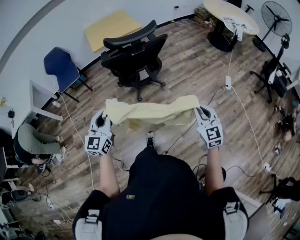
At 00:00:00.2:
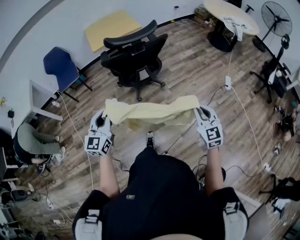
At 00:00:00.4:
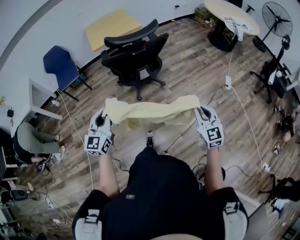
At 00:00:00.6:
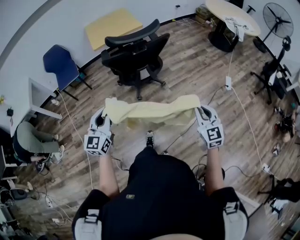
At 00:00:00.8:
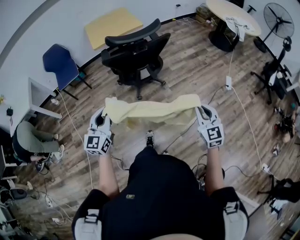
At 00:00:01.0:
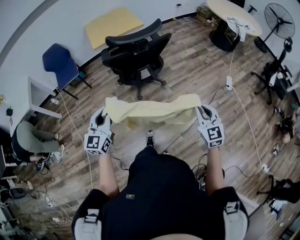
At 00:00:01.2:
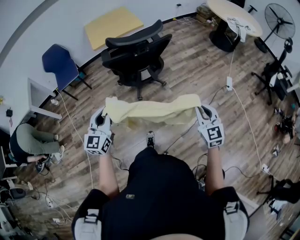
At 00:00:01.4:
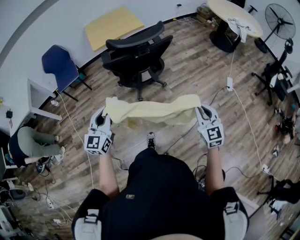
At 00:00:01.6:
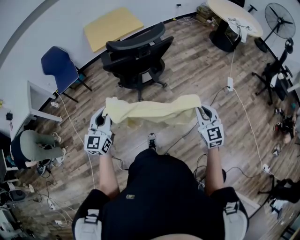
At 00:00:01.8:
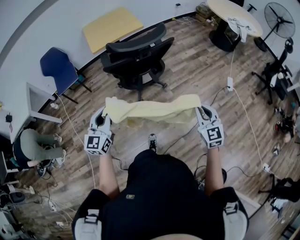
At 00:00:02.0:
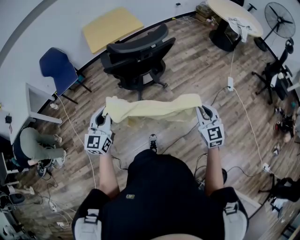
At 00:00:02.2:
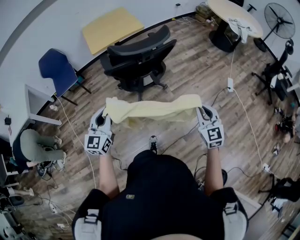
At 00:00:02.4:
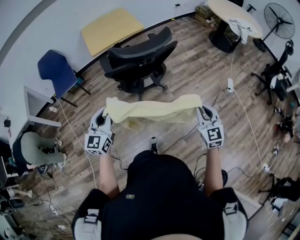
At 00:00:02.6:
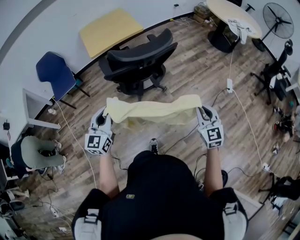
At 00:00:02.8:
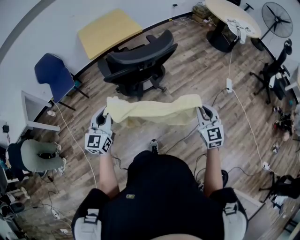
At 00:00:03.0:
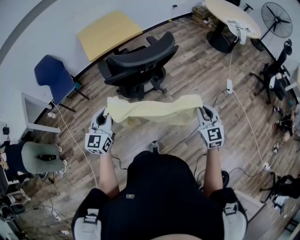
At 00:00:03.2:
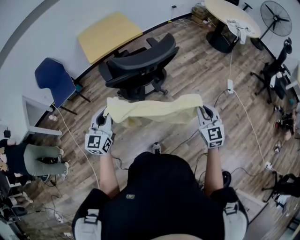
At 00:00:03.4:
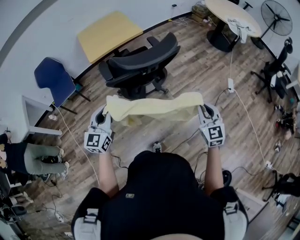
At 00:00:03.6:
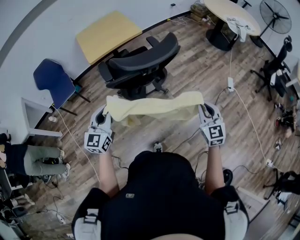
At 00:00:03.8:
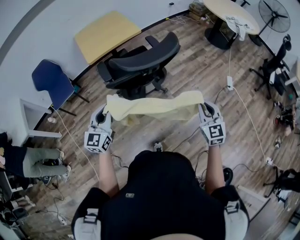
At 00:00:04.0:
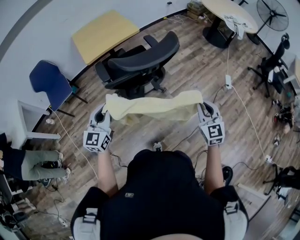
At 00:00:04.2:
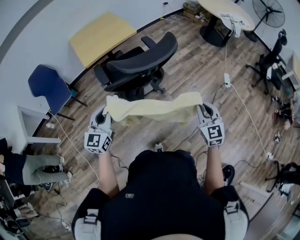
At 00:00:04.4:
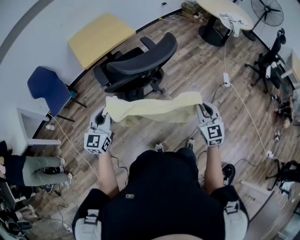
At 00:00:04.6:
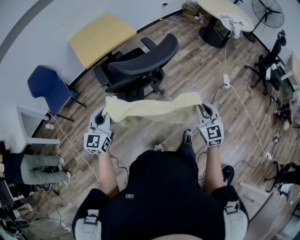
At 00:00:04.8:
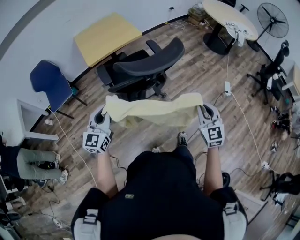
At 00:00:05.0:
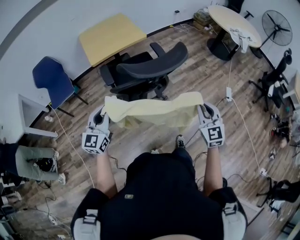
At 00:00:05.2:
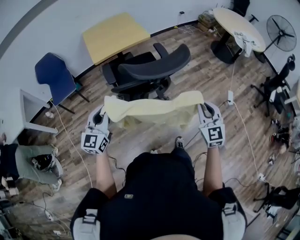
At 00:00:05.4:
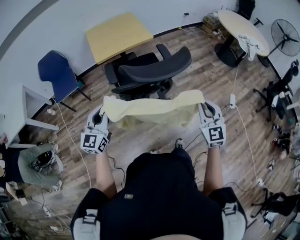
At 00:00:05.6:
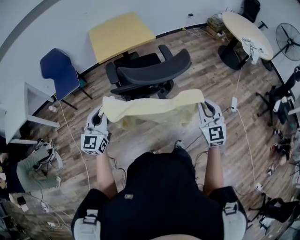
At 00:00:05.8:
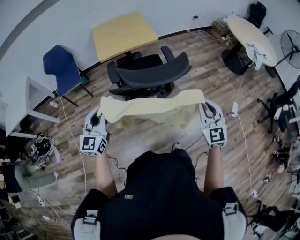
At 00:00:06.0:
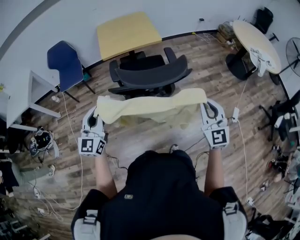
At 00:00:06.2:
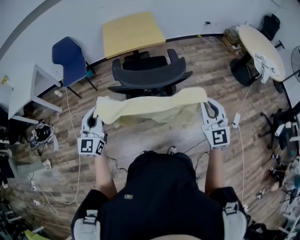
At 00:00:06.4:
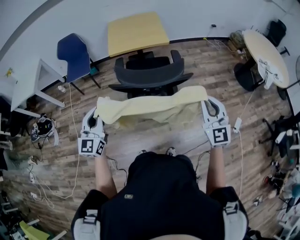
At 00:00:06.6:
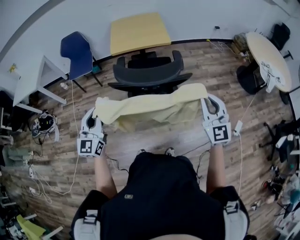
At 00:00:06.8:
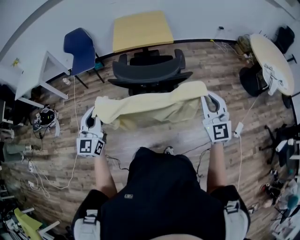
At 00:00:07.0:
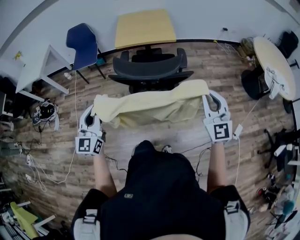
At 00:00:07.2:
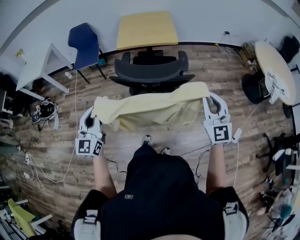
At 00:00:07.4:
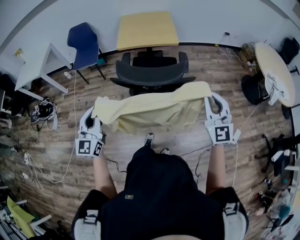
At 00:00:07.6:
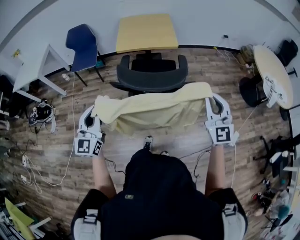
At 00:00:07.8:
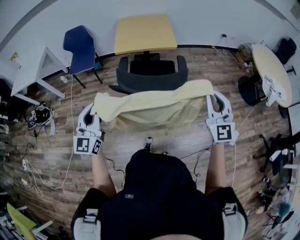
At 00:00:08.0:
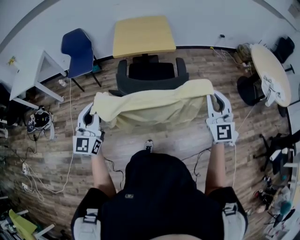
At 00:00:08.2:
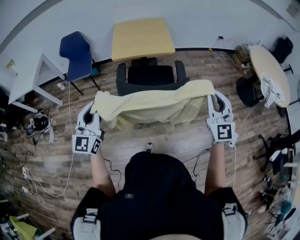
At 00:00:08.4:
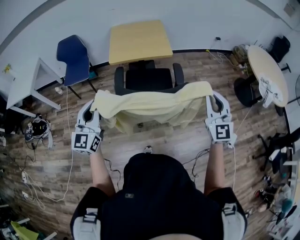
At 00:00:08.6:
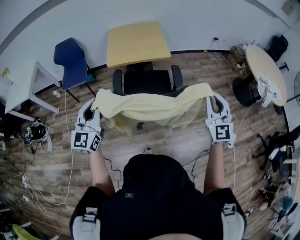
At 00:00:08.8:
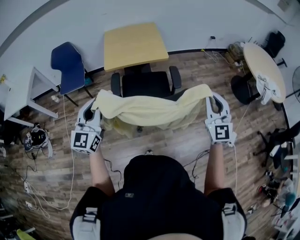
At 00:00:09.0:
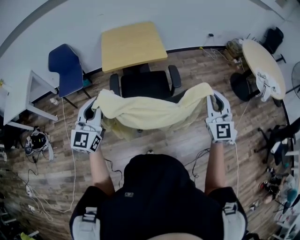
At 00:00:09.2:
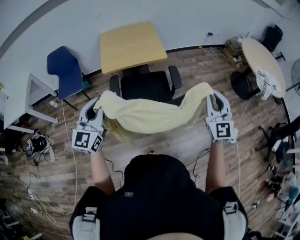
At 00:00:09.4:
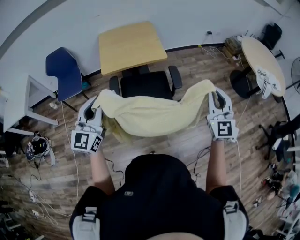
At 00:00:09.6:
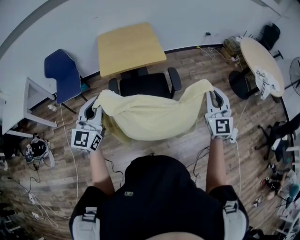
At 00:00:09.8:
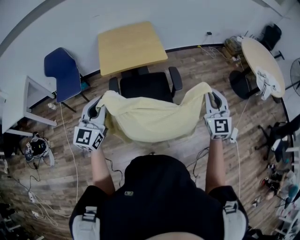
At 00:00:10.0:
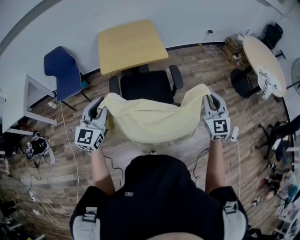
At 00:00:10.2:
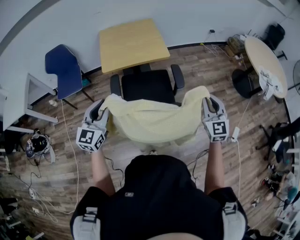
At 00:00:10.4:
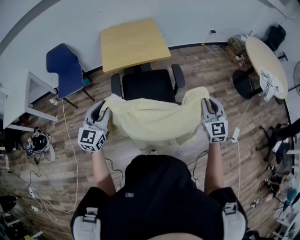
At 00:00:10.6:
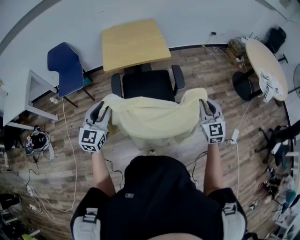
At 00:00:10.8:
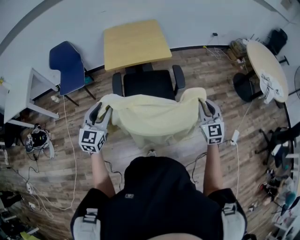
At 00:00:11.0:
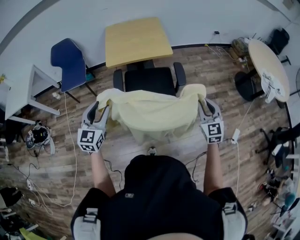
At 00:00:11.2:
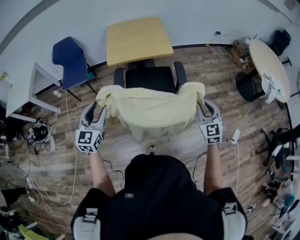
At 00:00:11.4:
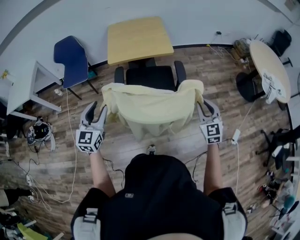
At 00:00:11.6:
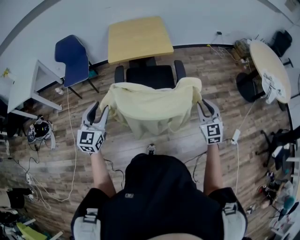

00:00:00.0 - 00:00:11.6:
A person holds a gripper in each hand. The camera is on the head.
00:00:00.0 - 00:00:01.4: Both grippers travel together forward, approximately 5 cm.
00:00:01.4 - 00:00:02.8: The two grippers go roughly 10 cm forward and to the left.
00:00:02.8 - 00:00:04.4: The left gripper heads forward, covering approximately 5 cm; the right gripper moves about 5 cm.
00:00:04.4 - 00:00:05.8: The right gripper is displaced forward and upward by roughly 15 cm.
00:00:05.8 - 00:00:07.2: The right gripper is displaced to the right and forward by roughly 10 cm. Meanwhile the left gripper shifts some 10 cm backward and to the right, and turns by about 20 degrees.
00:00:07.2 - 00:00:08.8: The grippers both shift forward by about 20 cm.
00:00:08.8 - 00:00:10.2: The left gripper is displaced forward and downward by roughly 10 cm. The right gripper shifts some 10 cm downward and forward.
00:00:10.2 - 00:00:11.6: The left gripper moves backward, some 10 cm. The right gripper heads backward and downward, covering approximately 10 cm.

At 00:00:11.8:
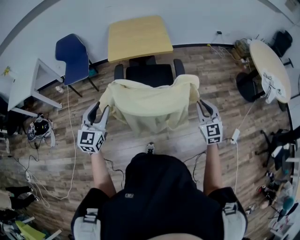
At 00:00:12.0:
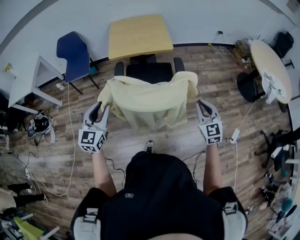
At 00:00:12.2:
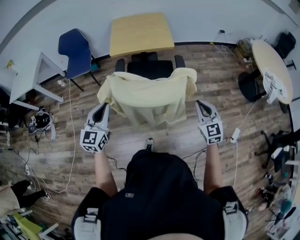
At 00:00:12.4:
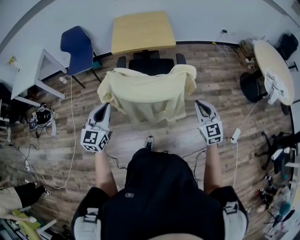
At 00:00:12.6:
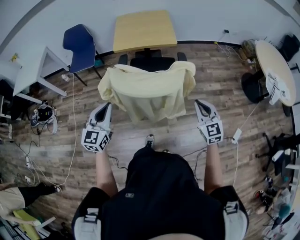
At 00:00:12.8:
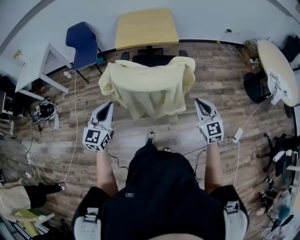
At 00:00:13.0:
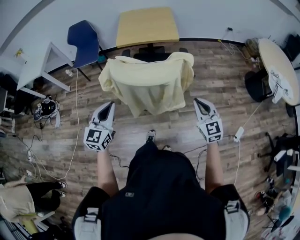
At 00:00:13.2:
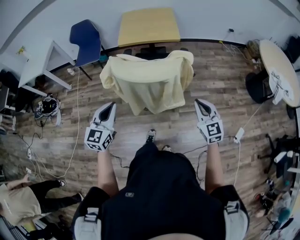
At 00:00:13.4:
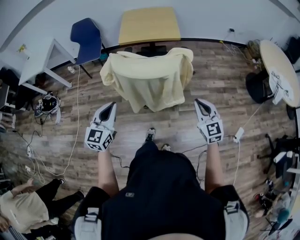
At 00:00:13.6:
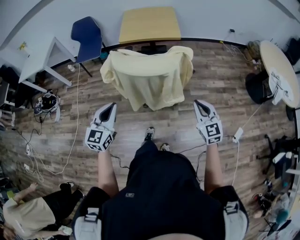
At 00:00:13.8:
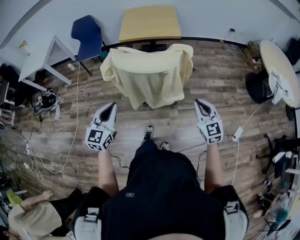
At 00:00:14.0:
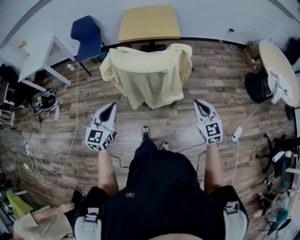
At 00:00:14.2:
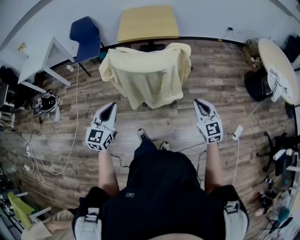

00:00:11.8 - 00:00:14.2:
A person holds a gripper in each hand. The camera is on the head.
00:00:11.8 - 00:00:13.0: The right gripper is displaced backward by some 10 cm; the left gripper shifts roughly 15 cm backward and to the right, and closes its fingers.
00:00:13.0 - 00:00:14.2: Both grippers travel together backward, about 5 cm.

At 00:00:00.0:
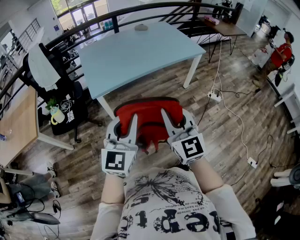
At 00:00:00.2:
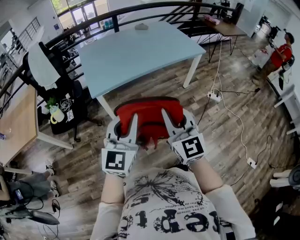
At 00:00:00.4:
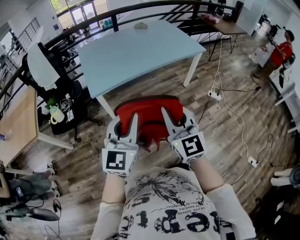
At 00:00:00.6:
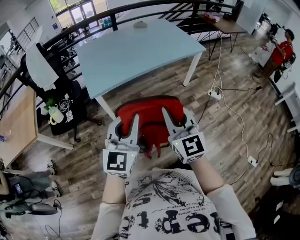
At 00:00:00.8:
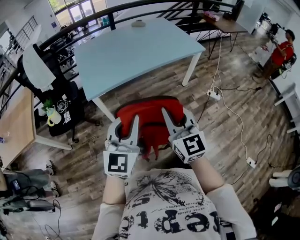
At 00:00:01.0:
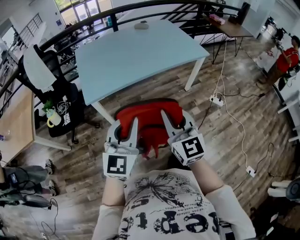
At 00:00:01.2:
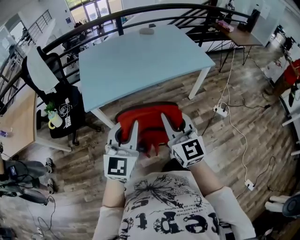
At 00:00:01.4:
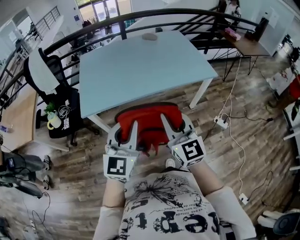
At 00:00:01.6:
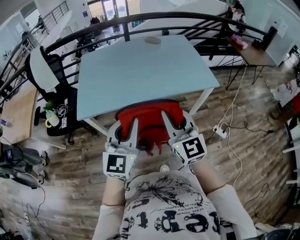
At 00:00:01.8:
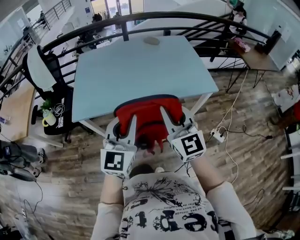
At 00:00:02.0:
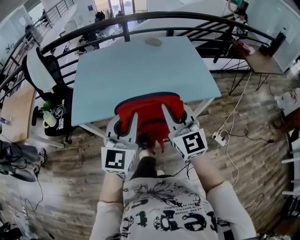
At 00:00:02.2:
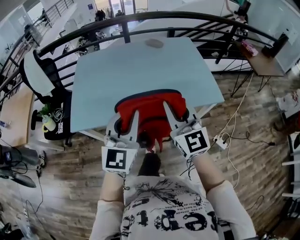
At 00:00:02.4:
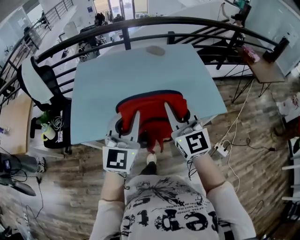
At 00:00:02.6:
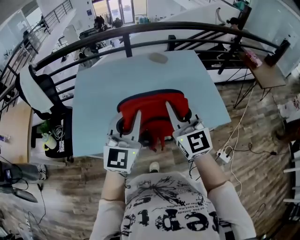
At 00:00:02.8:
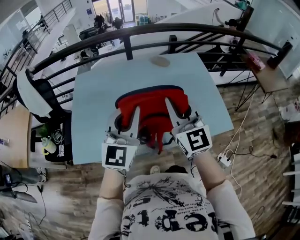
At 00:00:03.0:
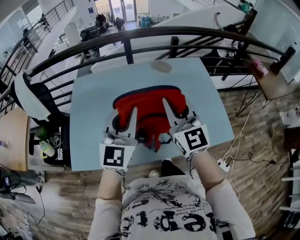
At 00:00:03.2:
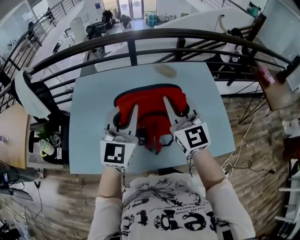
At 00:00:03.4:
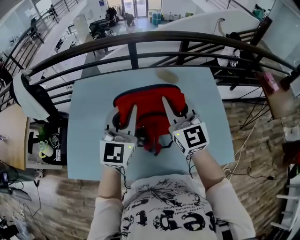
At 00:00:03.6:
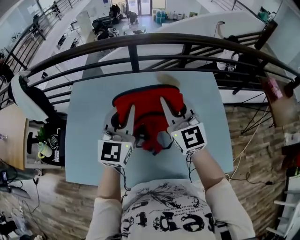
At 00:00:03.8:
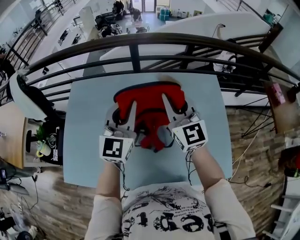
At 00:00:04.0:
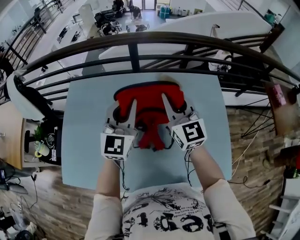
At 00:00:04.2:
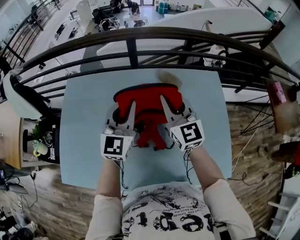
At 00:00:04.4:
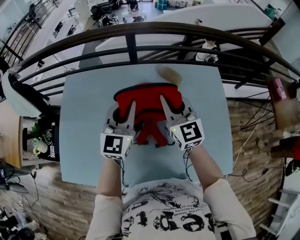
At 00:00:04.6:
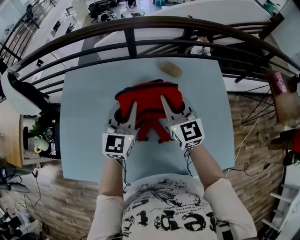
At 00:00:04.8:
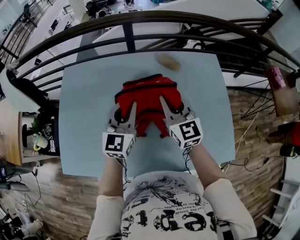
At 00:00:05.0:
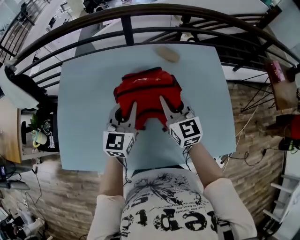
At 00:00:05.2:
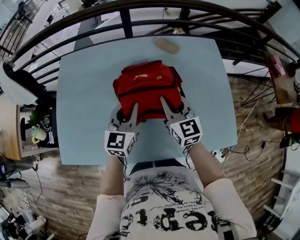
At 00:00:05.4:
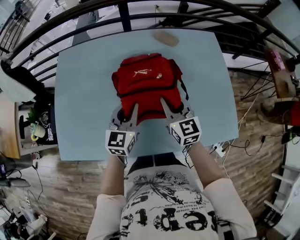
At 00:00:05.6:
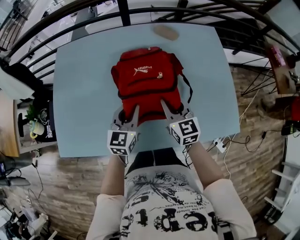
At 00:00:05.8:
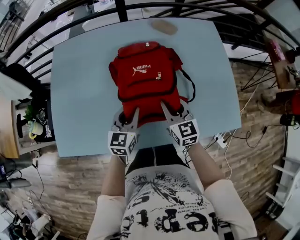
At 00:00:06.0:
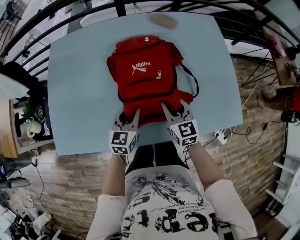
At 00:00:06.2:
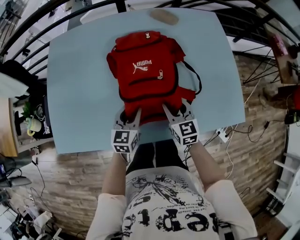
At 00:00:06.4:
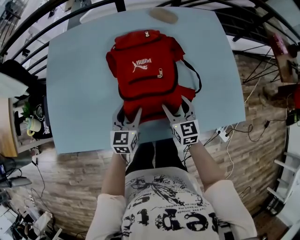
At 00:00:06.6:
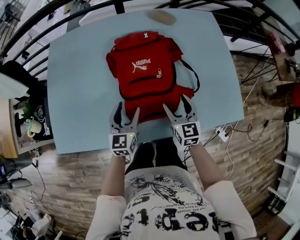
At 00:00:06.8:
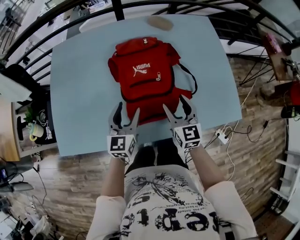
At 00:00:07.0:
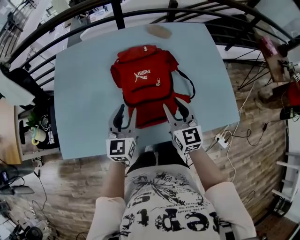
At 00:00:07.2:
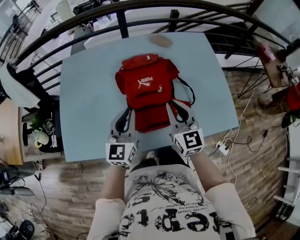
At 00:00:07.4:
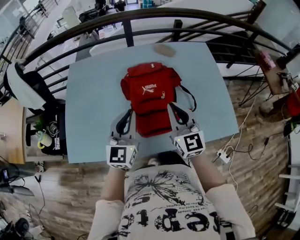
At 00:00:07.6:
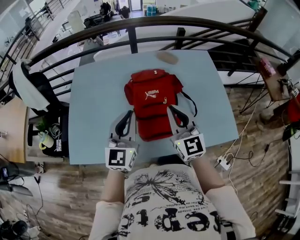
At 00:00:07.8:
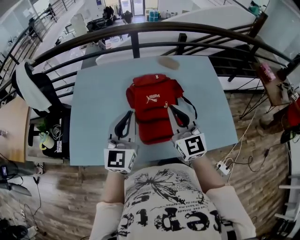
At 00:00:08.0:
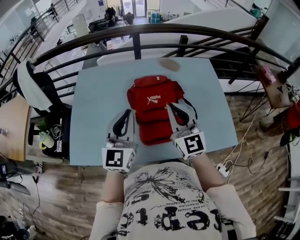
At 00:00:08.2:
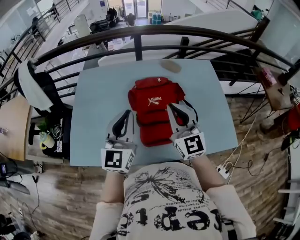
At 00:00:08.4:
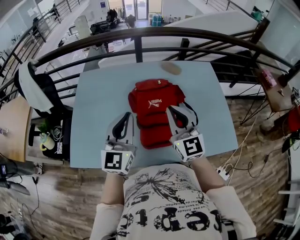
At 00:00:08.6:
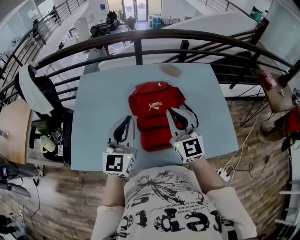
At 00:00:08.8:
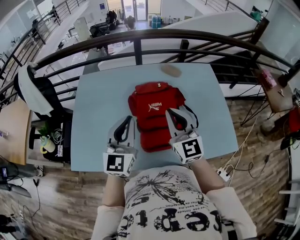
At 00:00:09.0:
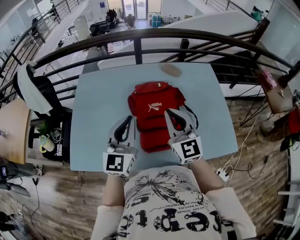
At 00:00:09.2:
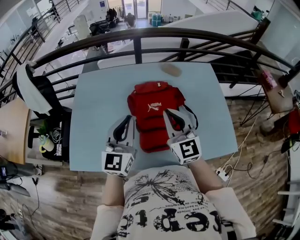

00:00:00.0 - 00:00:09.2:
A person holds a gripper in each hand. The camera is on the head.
00:00:00.0 - 00:00:01.6: The two grippers go about 40 cm forward and to the right.
00:00:01.6 - 00:00:03.0: The pair of grippers is taken forward, some 50 cm.
00:00:03.0 - 00:00:04.6: The grippers both shift forward and downward by about 30 cm.
00:00:04.6 - 00:00:06.2: The two grippers go some 35 cm downward and backward. The right gripper turns by roughly 20 degrees, and opens up; the left gripper turns by roughly 30 degrees.
00:00:06.2 - 00:00:07.6: The two grippers go about 30 cm upward. The left gripper rotates approximately 30 degrees, and closes its fingers. The right gripper rotates roughly 30 degrees, and closes its fingers.
00:00:07.6 - 00:00:09.2: The grippers make only small movements.
